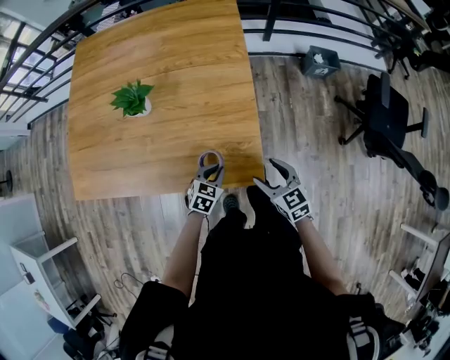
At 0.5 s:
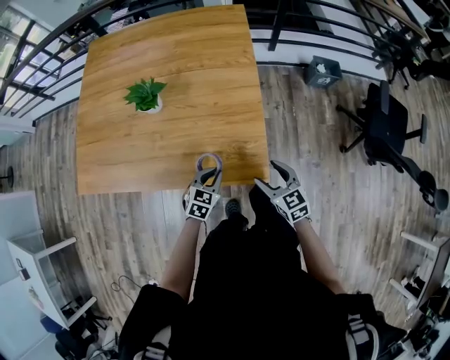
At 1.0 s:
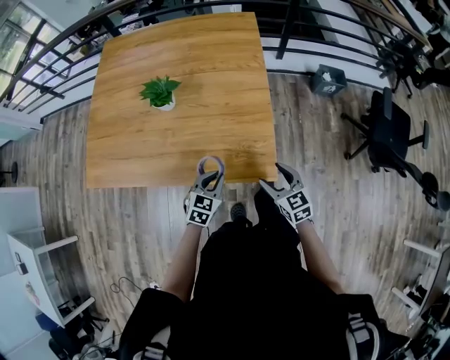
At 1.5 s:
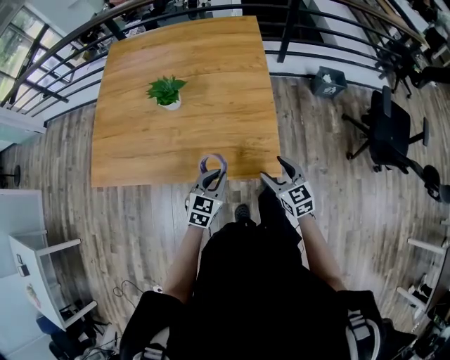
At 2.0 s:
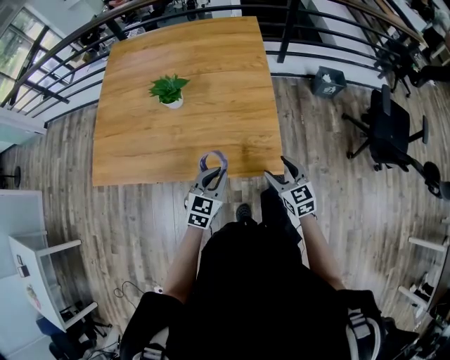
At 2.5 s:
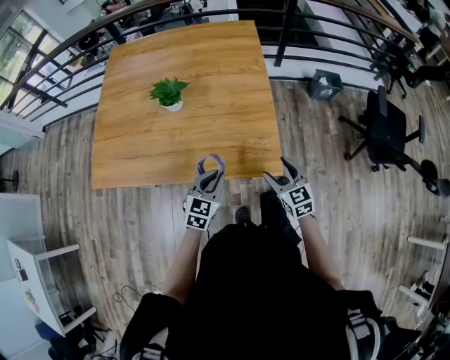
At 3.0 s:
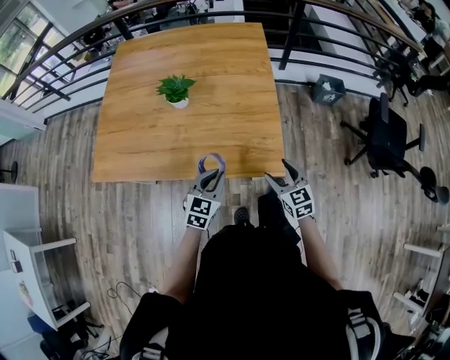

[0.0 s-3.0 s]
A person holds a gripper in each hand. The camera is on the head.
0.0 to 1.5 s: The right gripper shifts approximately 5 cm to the left; the left gripper moves upward, to the left and backward, roughly 15 cm.
1.5 to 3.0 s: There are only small adjustments of the grippers.

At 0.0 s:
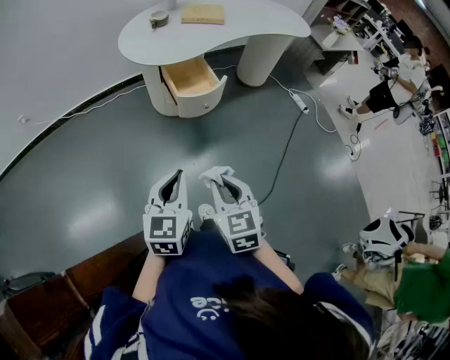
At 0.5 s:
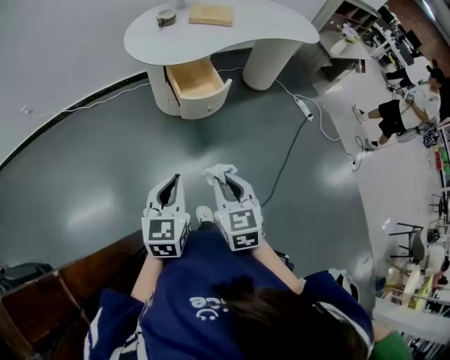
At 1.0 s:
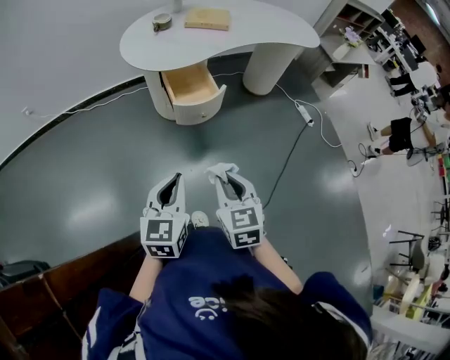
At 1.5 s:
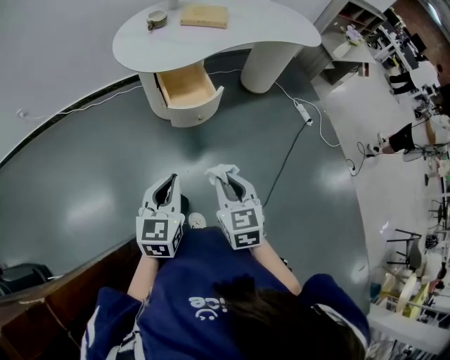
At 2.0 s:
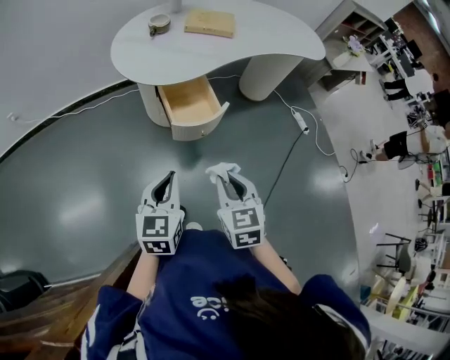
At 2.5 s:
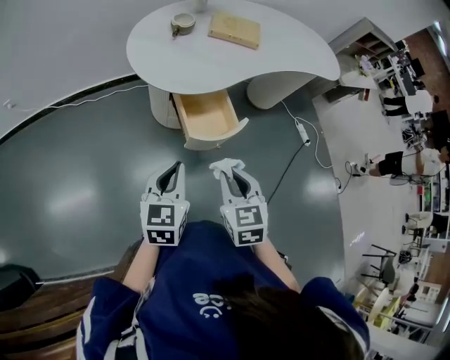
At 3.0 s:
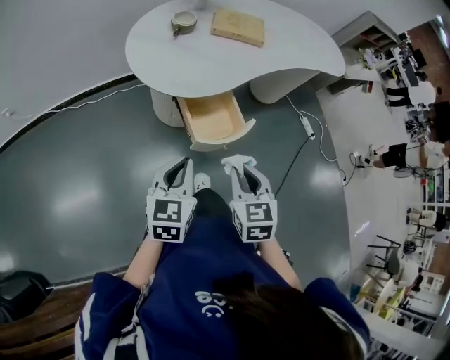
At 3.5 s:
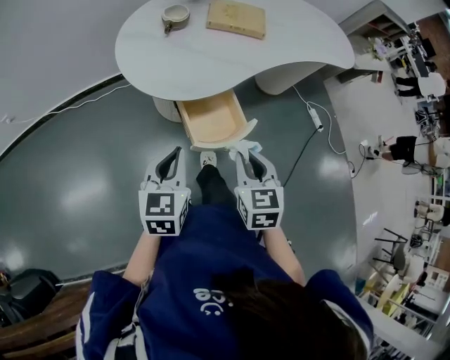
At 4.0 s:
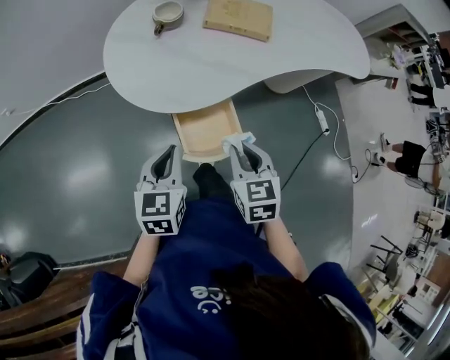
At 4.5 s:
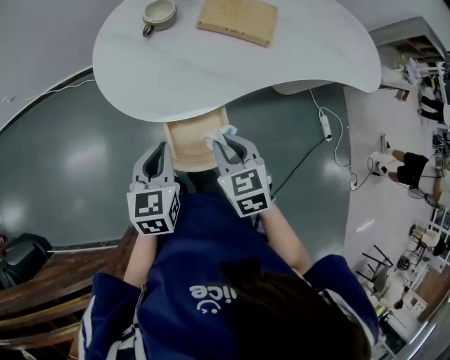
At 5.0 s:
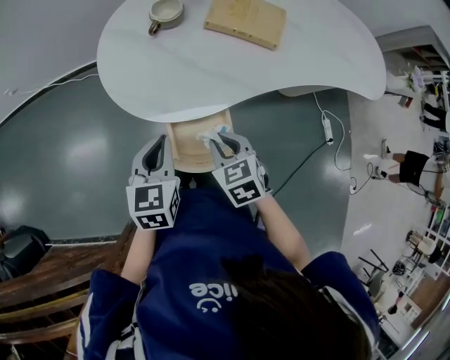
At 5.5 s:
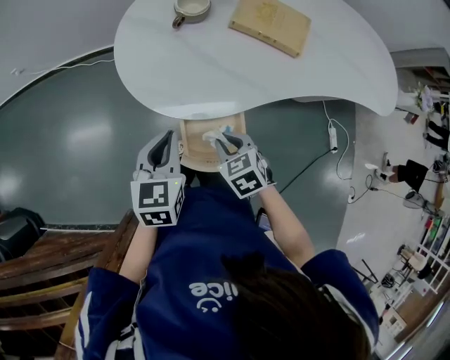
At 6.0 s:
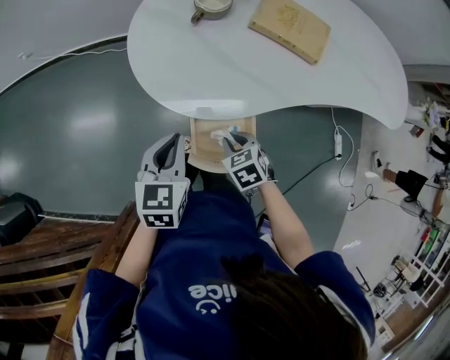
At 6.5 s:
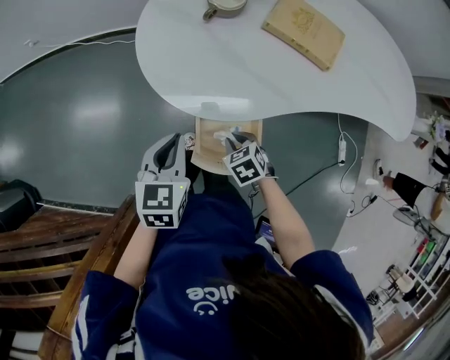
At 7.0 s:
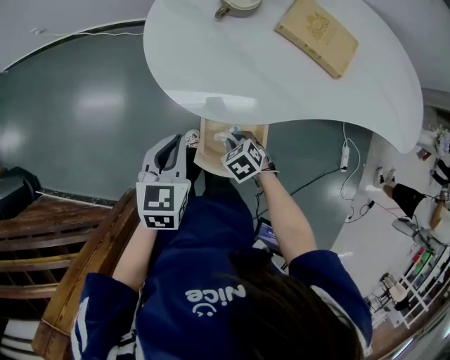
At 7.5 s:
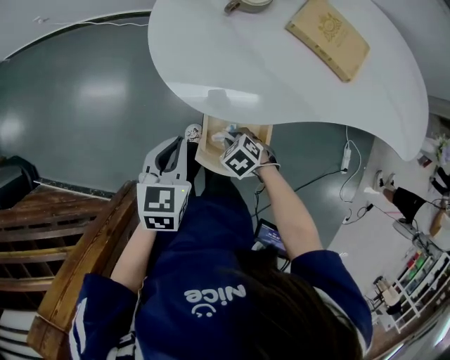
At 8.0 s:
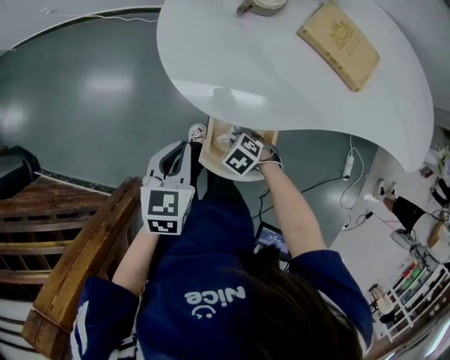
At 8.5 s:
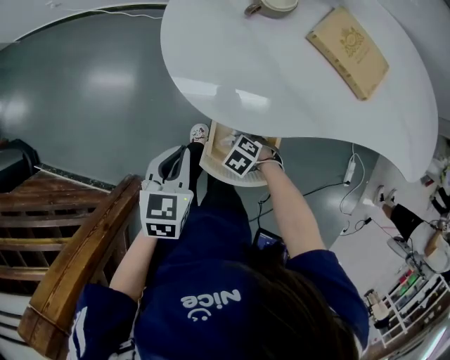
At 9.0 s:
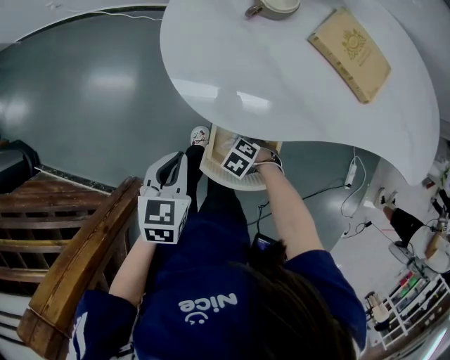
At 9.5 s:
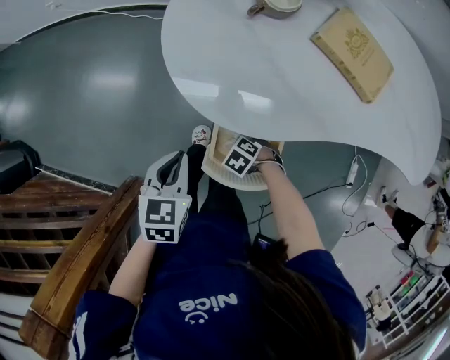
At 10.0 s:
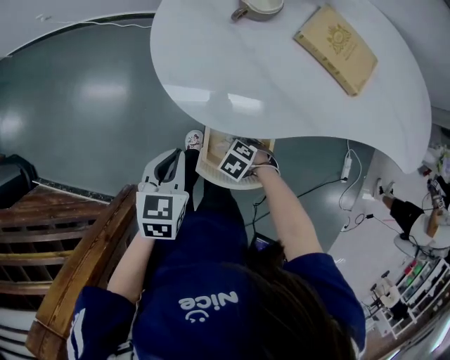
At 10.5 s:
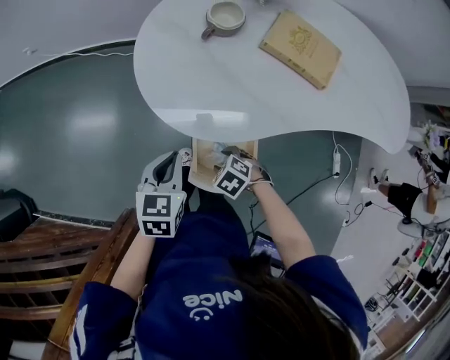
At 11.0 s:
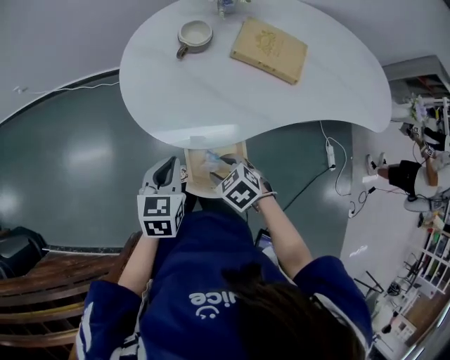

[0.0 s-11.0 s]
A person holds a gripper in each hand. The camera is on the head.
0.0 to 2.0 s: The two grippers go about 15 cm forward.
2.0 to 3.5 s: The left gripper is displaced forward and to the left by roughly 20 cm, while the right gripper travels forward by roughly 20 cm.
3.5 to 5.5 s: The right gripper ends up some 20 cm from where it was, and rotates some 40 degrees. The left gripper ends up some 15 cm from where it was, and turns by some 20 degrees.
5.5 to 7.5 s: The right gripper moves downward, about 15 cm, and turns by approximately 30 degrees, while the left gripper is displaced downward by about 5 cm.
7.5 to 9.0 s: The right gripper moves downward, some 5 cm.
9.0 to 11.0 s: The left gripper ends up some 10 cm from where it was. The right gripper heads upward, covering about 20 cm, changes its angle by some 30 degrees, and opens up.

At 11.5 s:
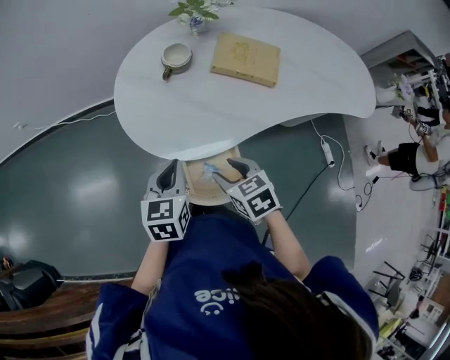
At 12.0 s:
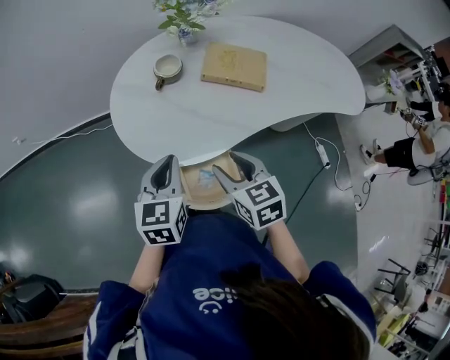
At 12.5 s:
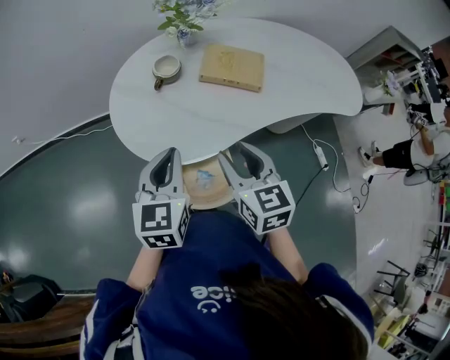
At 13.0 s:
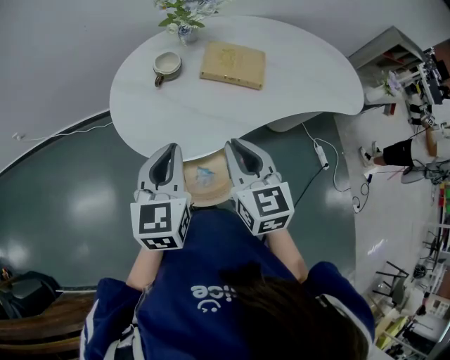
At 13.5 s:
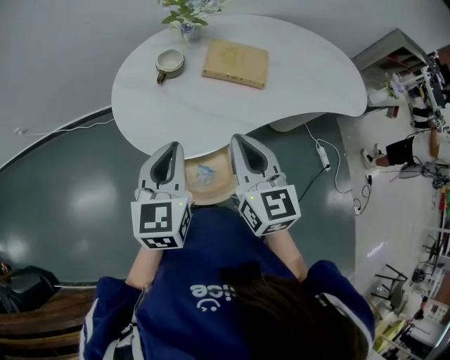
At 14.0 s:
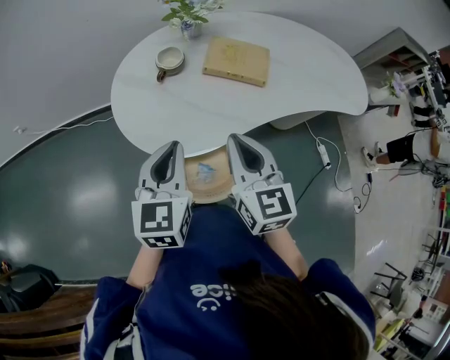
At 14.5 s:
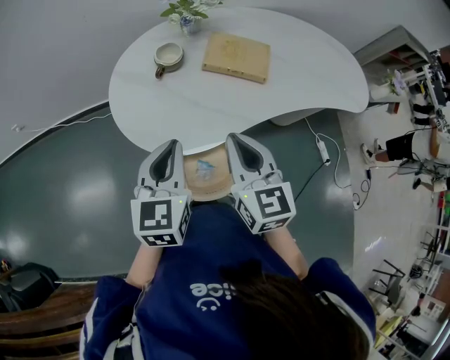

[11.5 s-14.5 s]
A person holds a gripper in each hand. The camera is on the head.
11.5 to 13.0 s: Both grippers travel together upward, roughly 15 cm. The right gripper rotates roughly 40 degrees, and closes its fingers.
13.0 to 14.5 s: The grippers move only a little.

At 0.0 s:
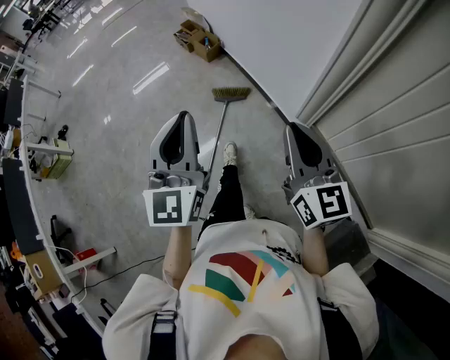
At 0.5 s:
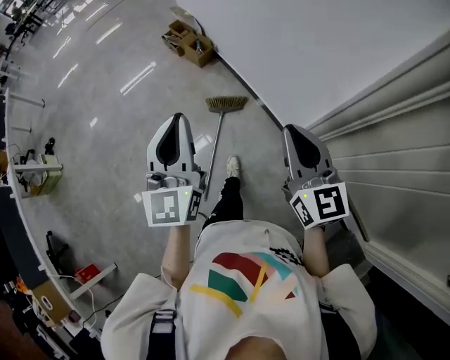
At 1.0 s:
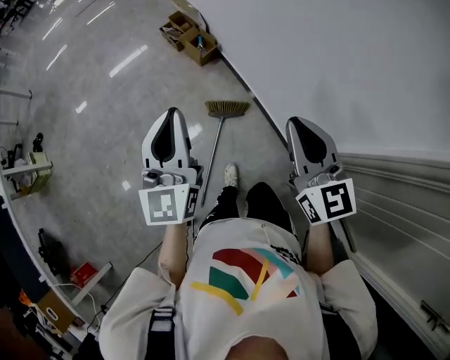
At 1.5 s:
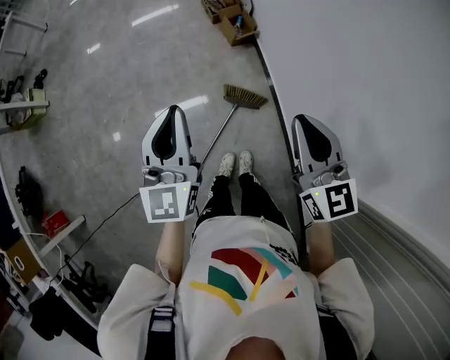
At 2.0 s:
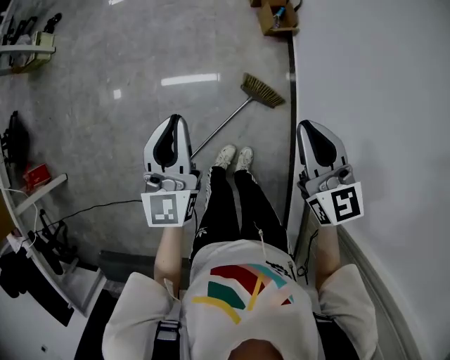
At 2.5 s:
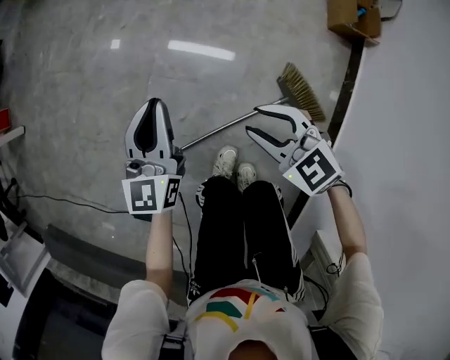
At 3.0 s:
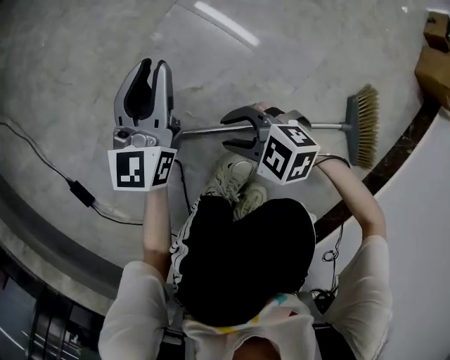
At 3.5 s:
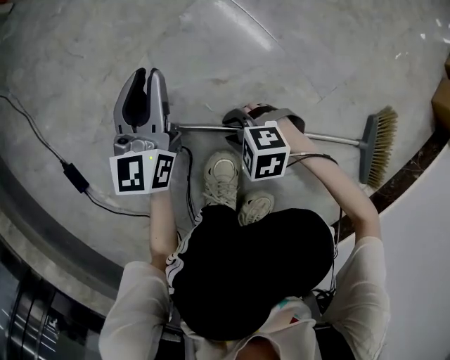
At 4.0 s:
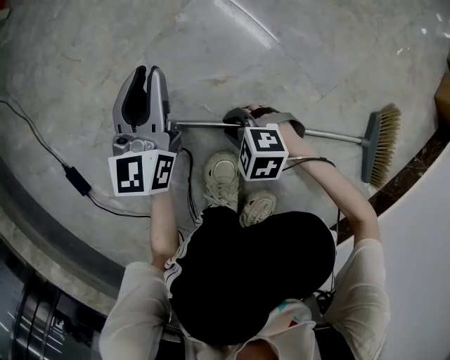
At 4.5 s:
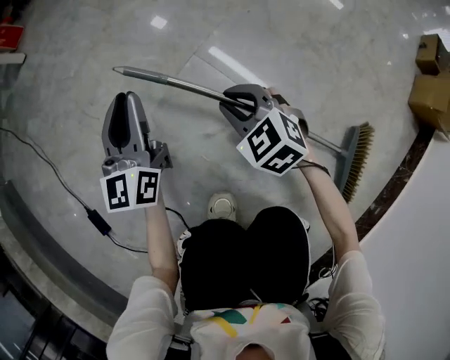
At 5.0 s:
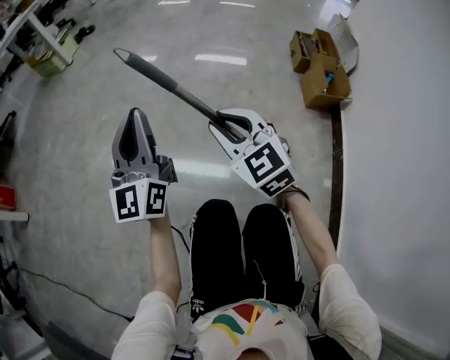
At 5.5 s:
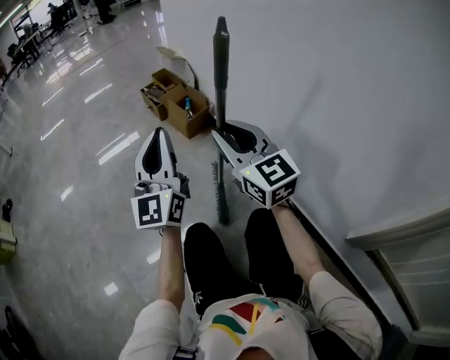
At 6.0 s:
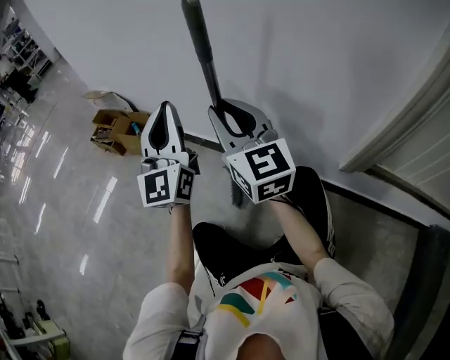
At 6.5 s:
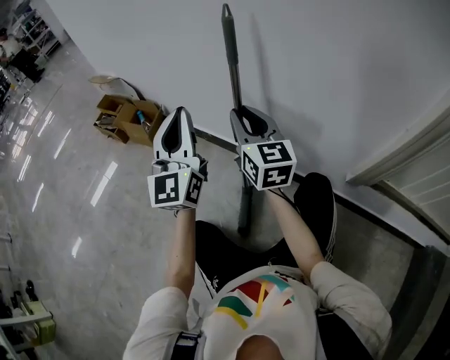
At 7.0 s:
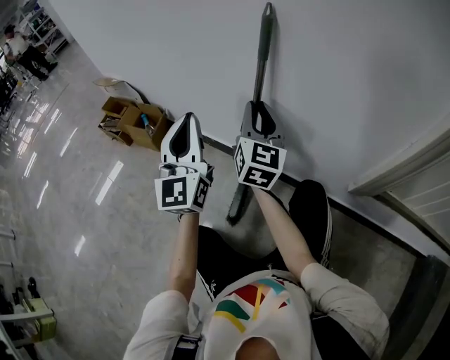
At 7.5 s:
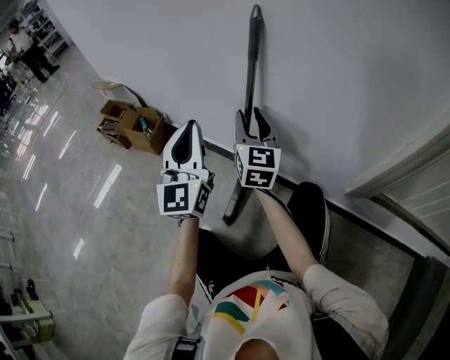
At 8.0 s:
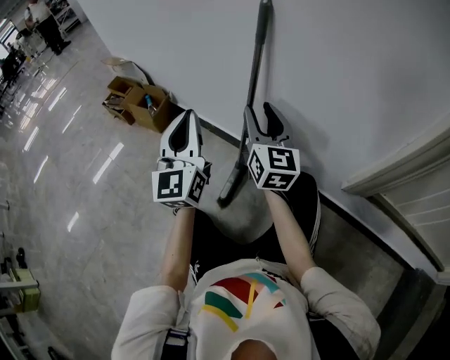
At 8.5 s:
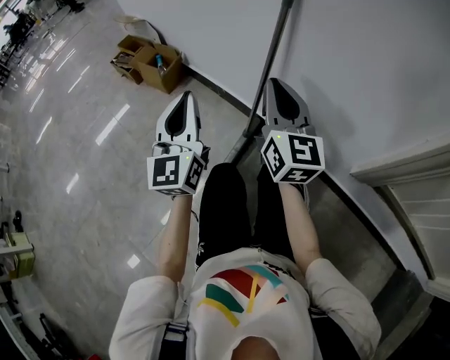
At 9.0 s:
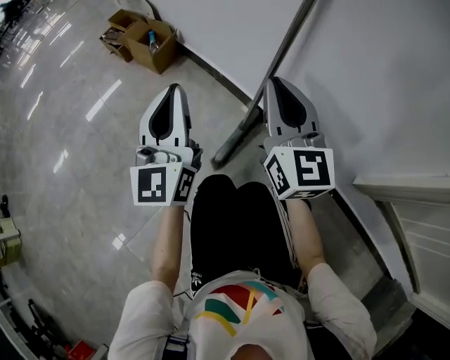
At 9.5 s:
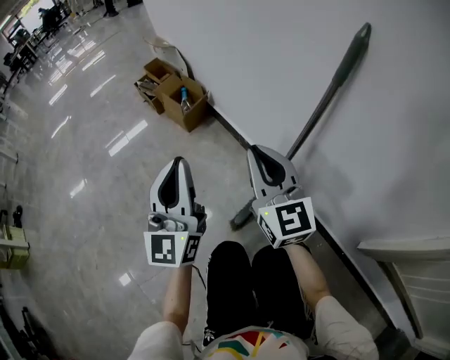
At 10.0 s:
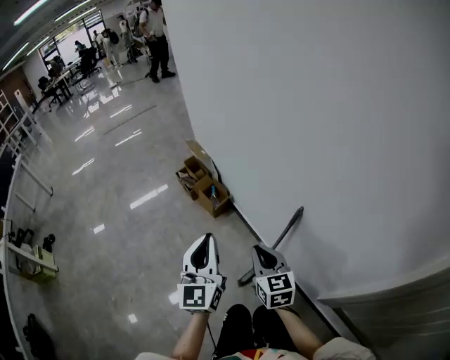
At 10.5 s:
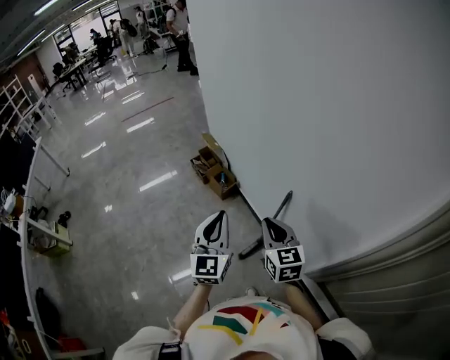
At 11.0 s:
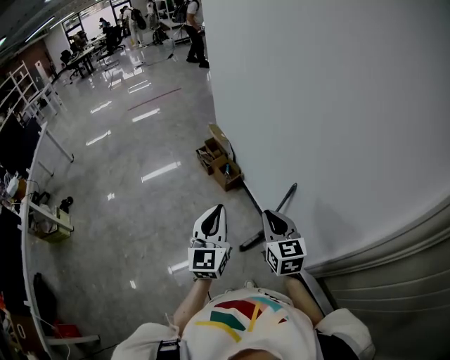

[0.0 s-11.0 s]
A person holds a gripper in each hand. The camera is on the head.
0.0 to 2.0 s: The two grippers travel together, some 50 cm. The left gripper turns by about 40 degrees, while the right gripper changes its angle by about 40 degrees.
2.0 to 3.5 s: The grippers both shift downward by roughly 80 cm. The right gripper angles its fingers downward, by about 40 degrees, and opens up; the left gripper rotates some 50 degrees.
3.5 to 5.5 s: The pair of grippers is taken about 50 cm. The right gripper moves upward, approximately 60 cm, and tips its fingers upward by some 60 degrees. The left gripper tips its fingers upward by approximately 40 degrees.
5.5 to 7.5 s: The right gripper ends up some 25 cm from where it was, and changes its angle by some 60 degrees, while the left gripper shifts by about 25 cm, and turns by roughly 30 degrees.
7.5 to 9.0 s: The left gripper heads downward, backward and to the left, covering approximately 10 cm. The right gripper heads backward, covering about 10 cm, changes its angle by some 20 degrees, and closes its fingers.
9.0 to 11.0 s: The two grippers go some 60 cm upward. The right gripper turns by about 30 degrees.
